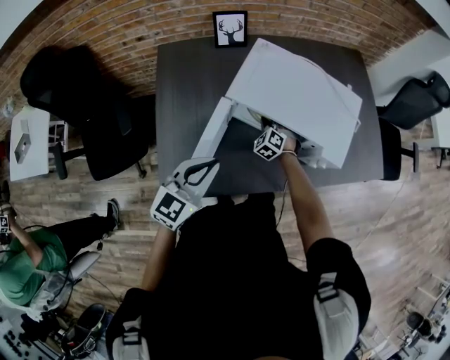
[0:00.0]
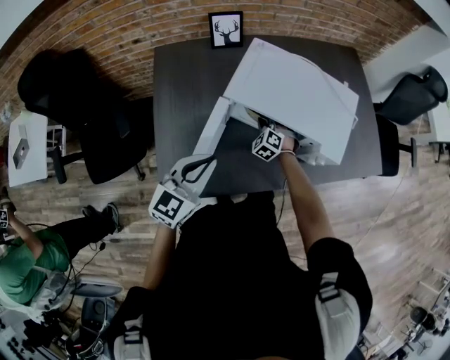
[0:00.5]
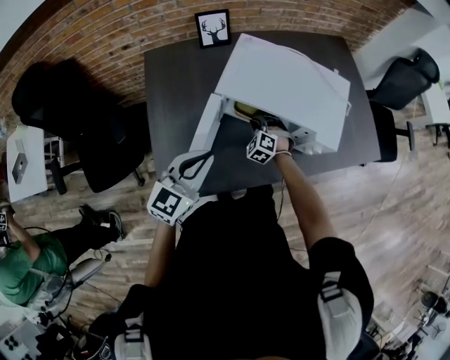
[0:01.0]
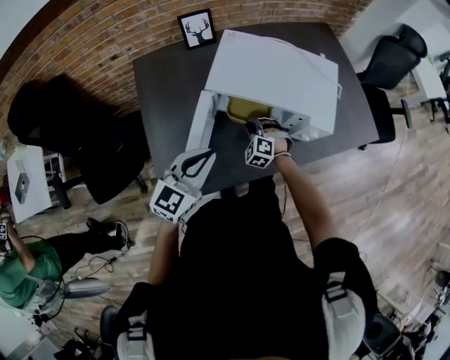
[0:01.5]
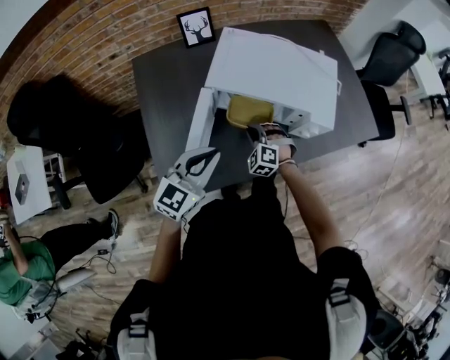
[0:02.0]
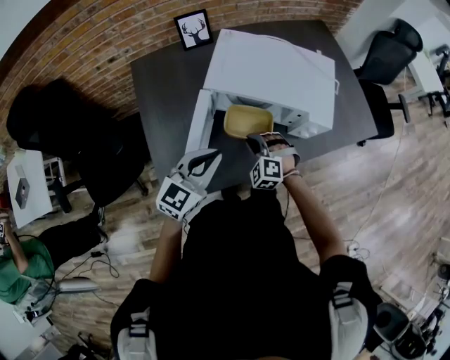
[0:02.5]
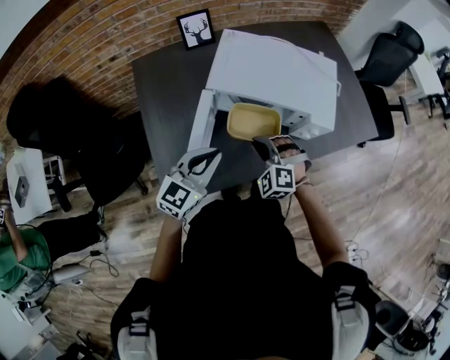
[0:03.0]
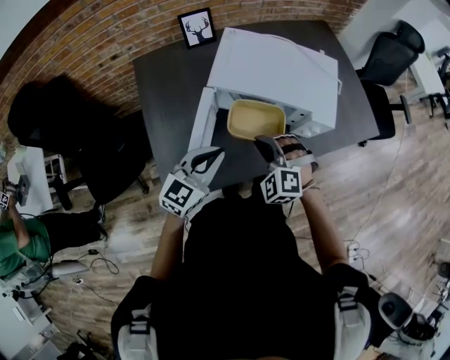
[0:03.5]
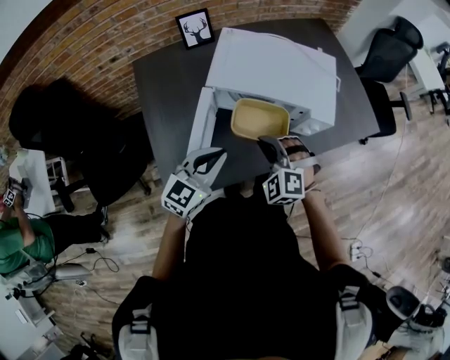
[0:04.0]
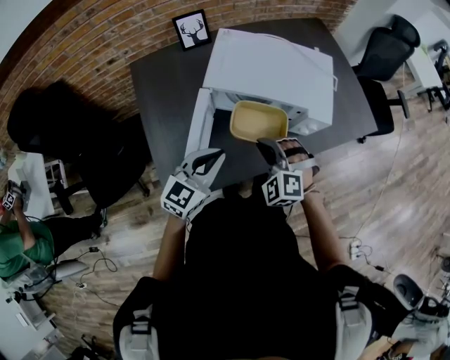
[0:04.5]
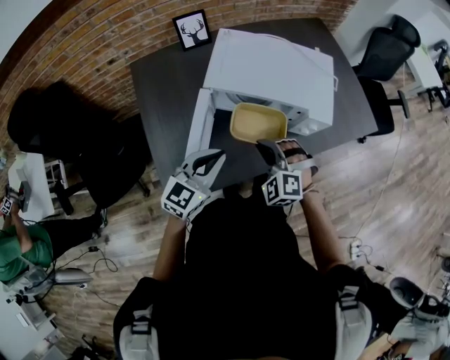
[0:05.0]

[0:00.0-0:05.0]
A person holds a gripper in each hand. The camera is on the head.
0:00.0 to 0:02.5: The right gripper moves backward and upward, approximately 20 cm.
0:02.5 to 0:05.0: The right gripper shifts roughly 10 cm upward.

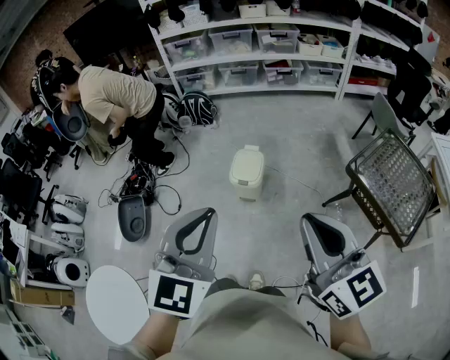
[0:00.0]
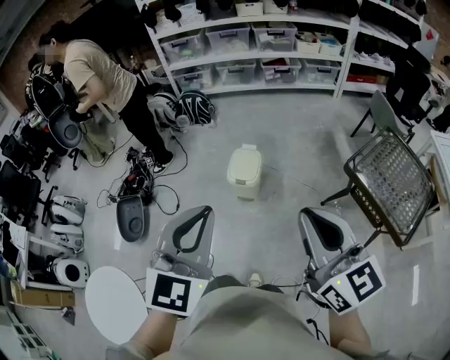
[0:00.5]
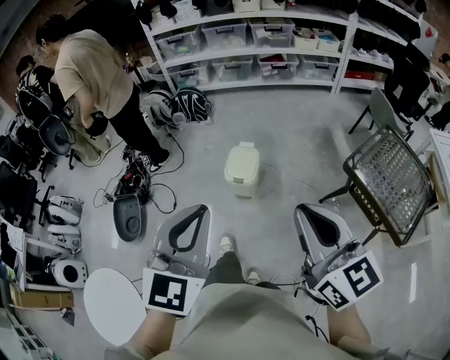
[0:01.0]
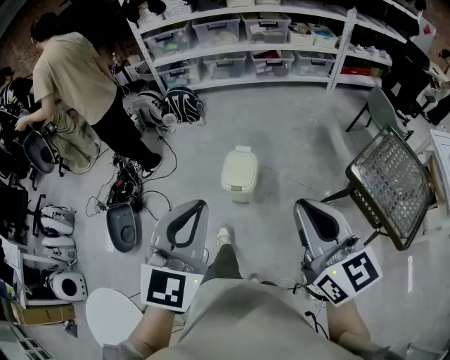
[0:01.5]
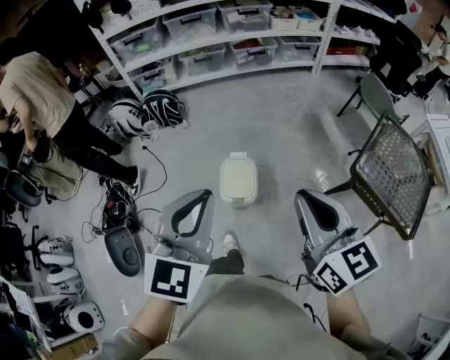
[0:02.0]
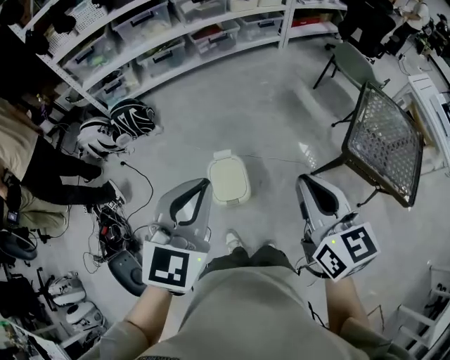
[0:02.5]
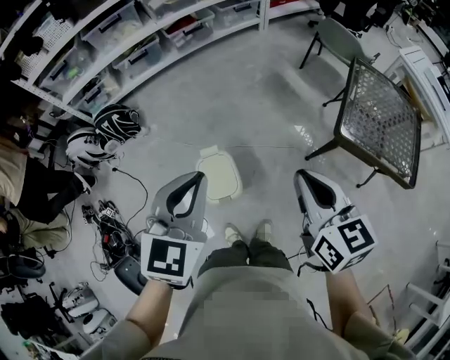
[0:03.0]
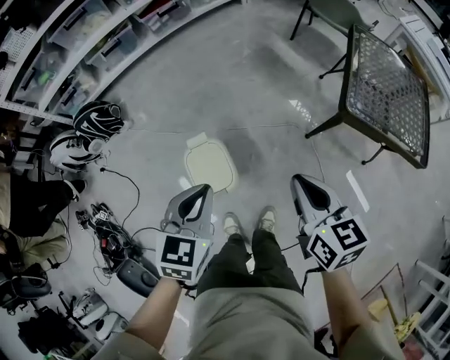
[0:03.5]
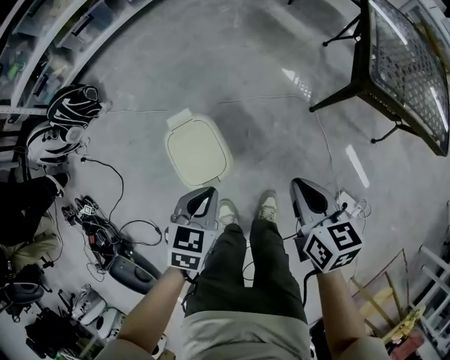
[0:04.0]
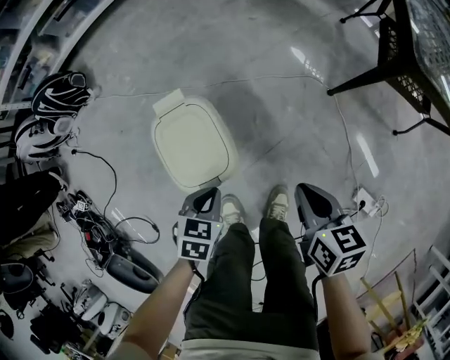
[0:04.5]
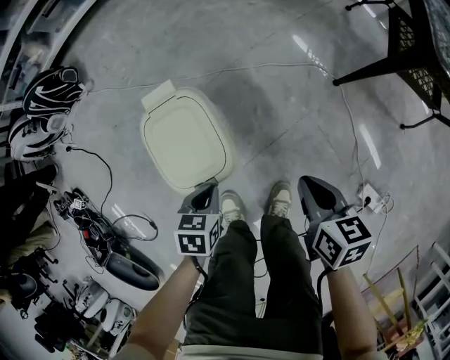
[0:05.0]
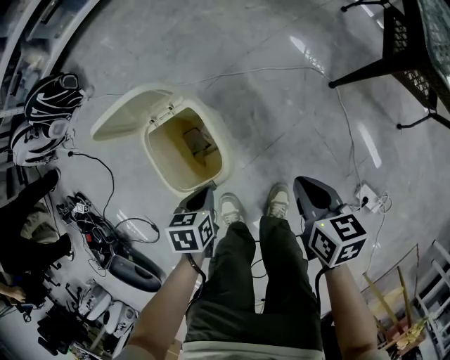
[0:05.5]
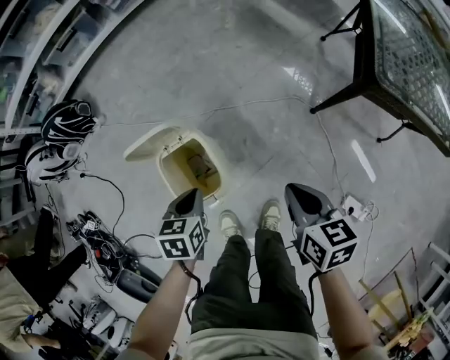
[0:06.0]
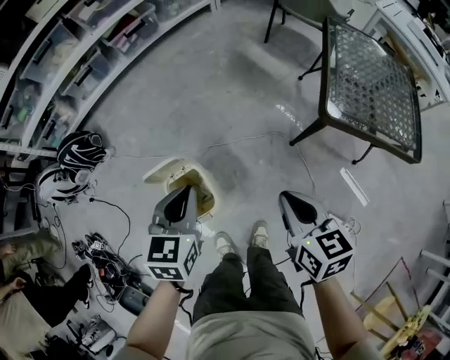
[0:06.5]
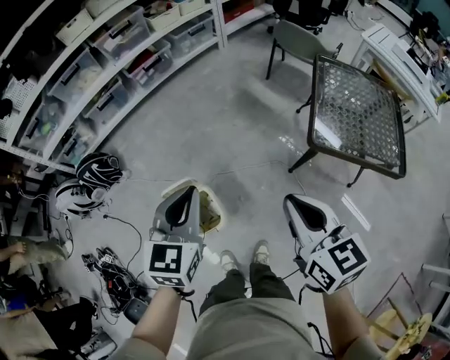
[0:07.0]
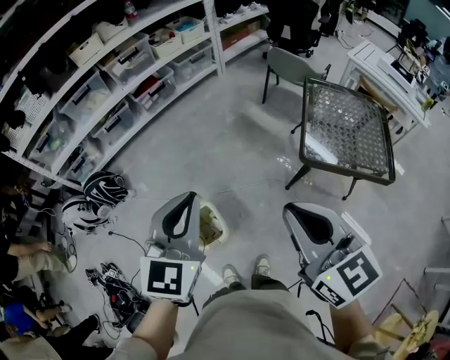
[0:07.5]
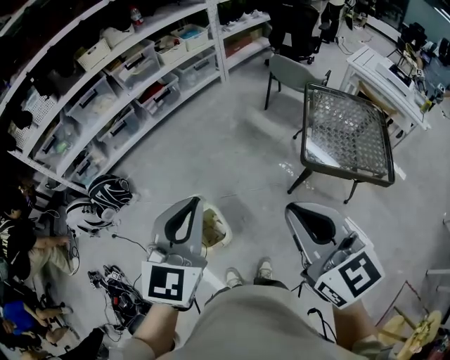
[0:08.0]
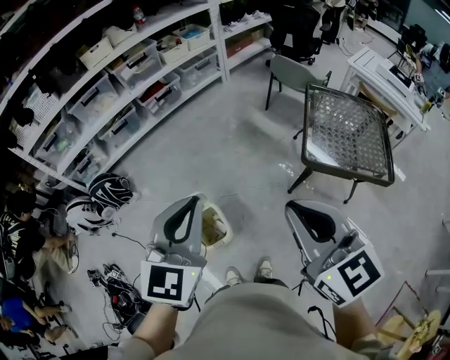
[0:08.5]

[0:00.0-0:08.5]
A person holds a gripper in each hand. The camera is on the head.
0:00.0 to 0:02.0: Both grippers move forward, approximately 30 cm.
0:02.0 to 0:04.0: Both grippers travel together downward, about 50 cm. The right gripper swivels roughly 40 degrees; the left gripper points its fingers roughly 30 degrees further downward.
0:04.0 to 0:06.5: The left gripper goes about 25 cm upward and forward. Meanwhile the right gripper travels upward and forward by roughly 15 cm.
0:06.5 to 0:08.5: Both grippers travel together upward, roughly 35 cm. The left gripper changes its angle by approximately 30 degrees, while the right gripper changes its angle by some 30 degrees.

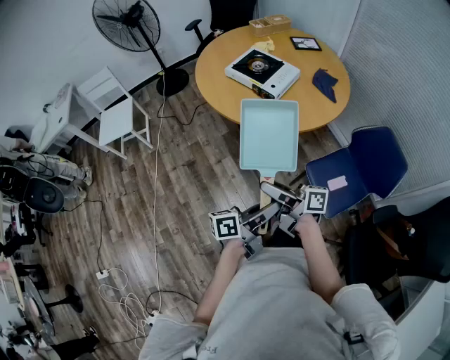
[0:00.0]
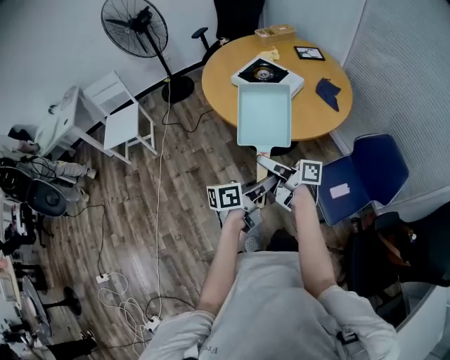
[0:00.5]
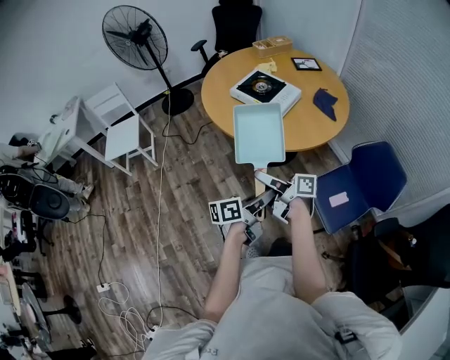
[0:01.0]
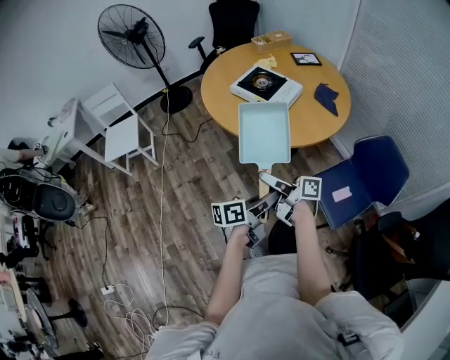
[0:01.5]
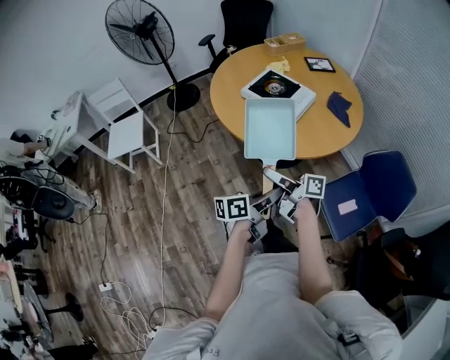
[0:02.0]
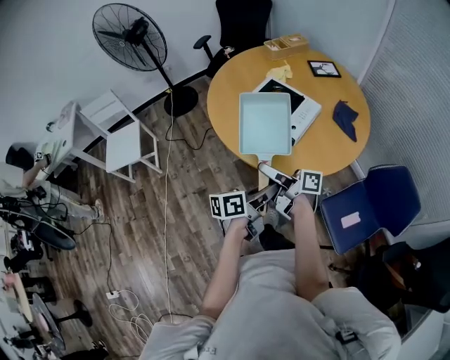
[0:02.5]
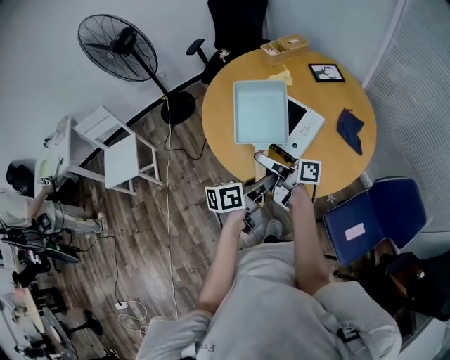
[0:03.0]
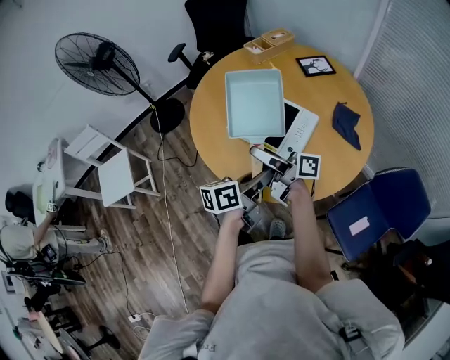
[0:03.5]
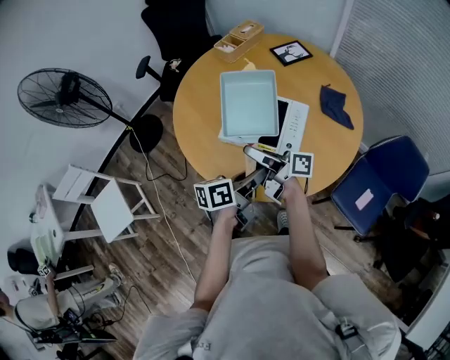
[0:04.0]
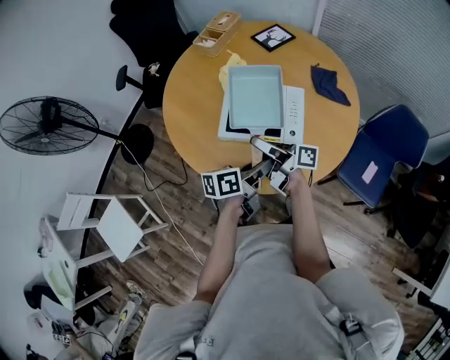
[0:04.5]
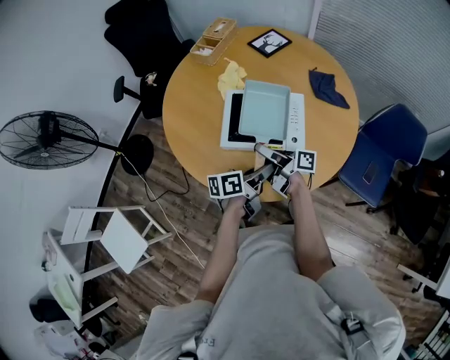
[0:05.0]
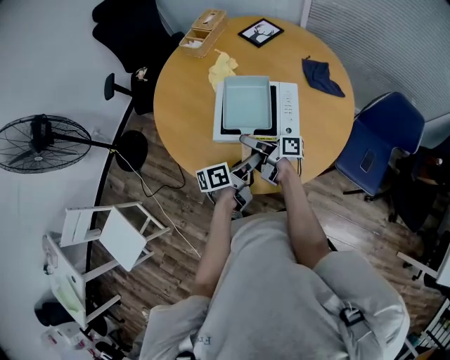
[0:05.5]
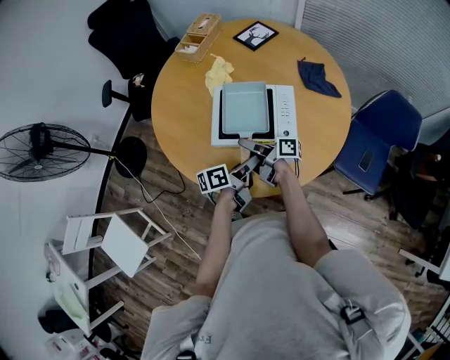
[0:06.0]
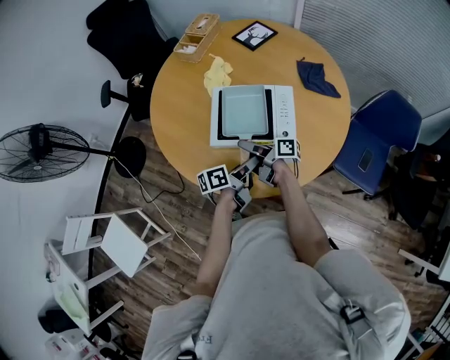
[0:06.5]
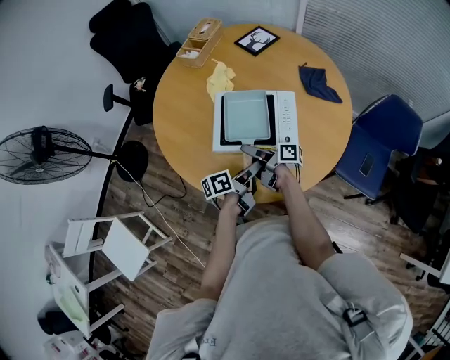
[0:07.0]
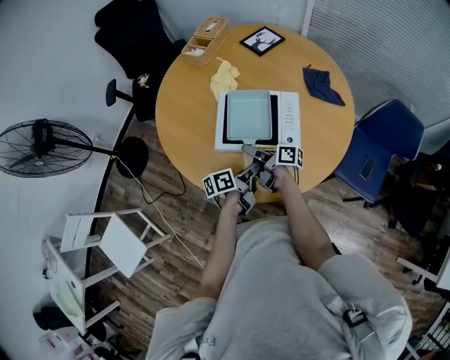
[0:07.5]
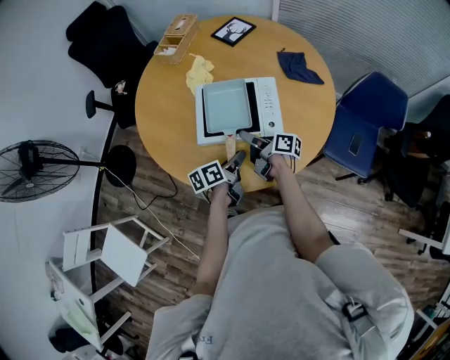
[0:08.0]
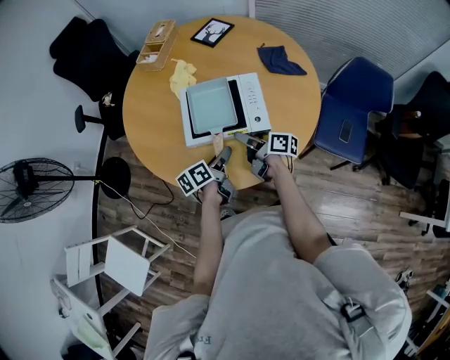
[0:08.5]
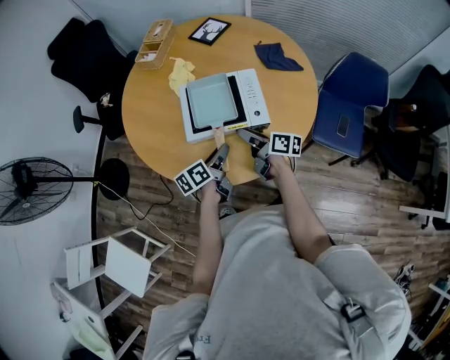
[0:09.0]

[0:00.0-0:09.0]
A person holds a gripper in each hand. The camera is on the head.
0:00.0 to 0:02.0: Both grippers travel together forward, some 15 cm.
0:02.0 to 0:04.5: The left gripper ends up roughly 35 cm from where it was, and swivels roughly 30 degrees; the right gripper ends up about 35 cm from where it was, and rotates some 30 degrees.
0:04.5 to 0:07.0: Both grippers move downward, about 10 cm.
0:07.0 to 0:09.0: The right gripper is displaced to the right by some 10 cm, and changes its angle by some 30 degrees.

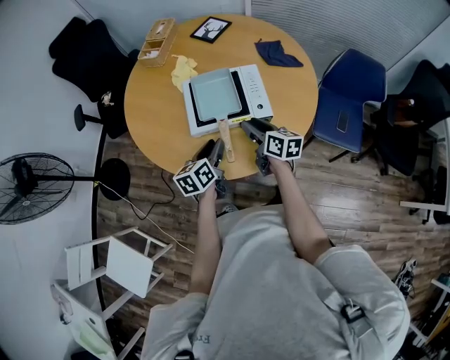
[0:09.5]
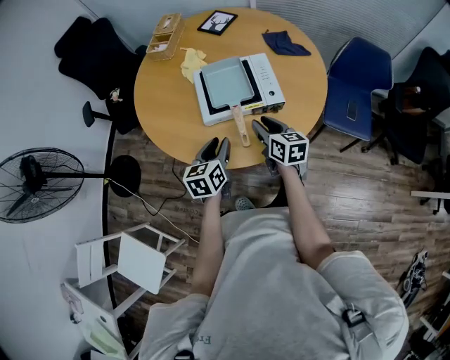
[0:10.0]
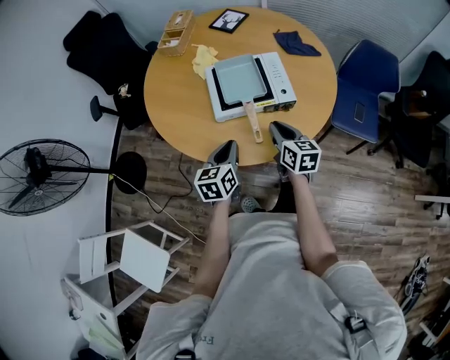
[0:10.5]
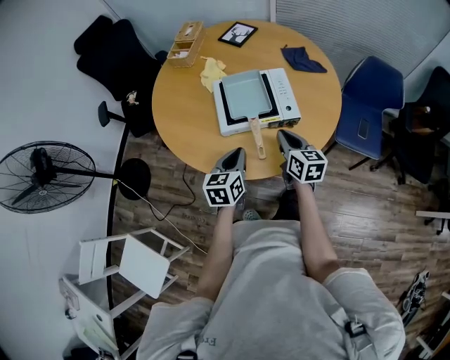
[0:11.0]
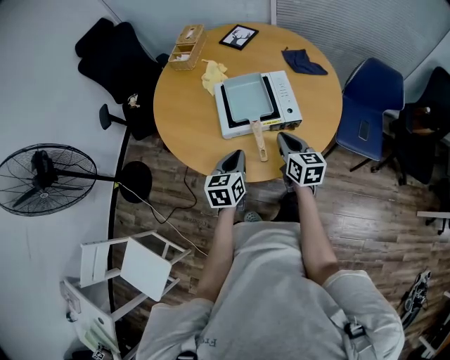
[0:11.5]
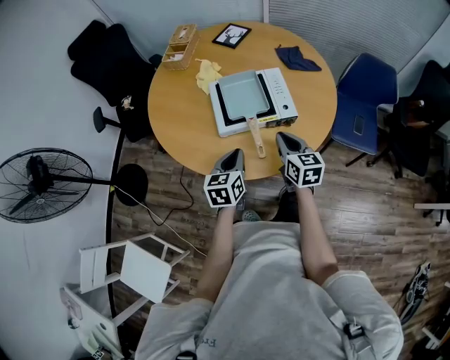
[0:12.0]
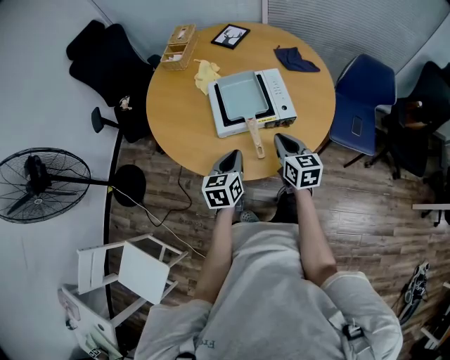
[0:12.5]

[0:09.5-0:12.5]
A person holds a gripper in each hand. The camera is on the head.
0:09.5 to 0:11.0: The left gripper moves some 5 cm, and closes its fingers; the right gripper shifts by approximately 5 cm, and closes.
0:11.0 to 0:12.5: The grippers make only small movements.

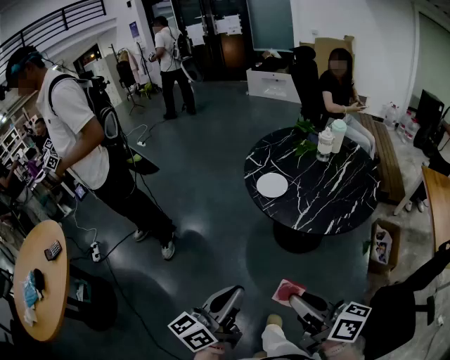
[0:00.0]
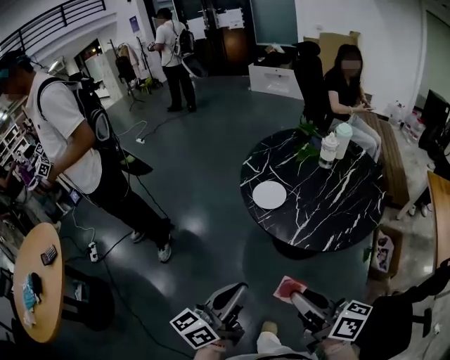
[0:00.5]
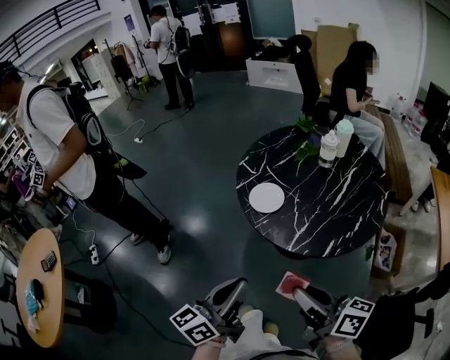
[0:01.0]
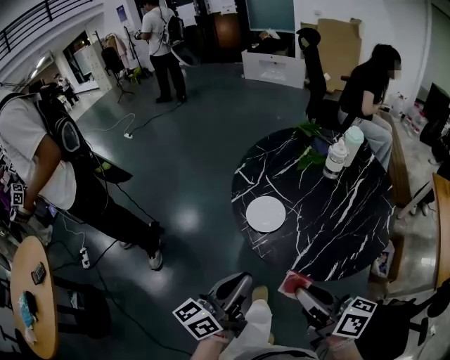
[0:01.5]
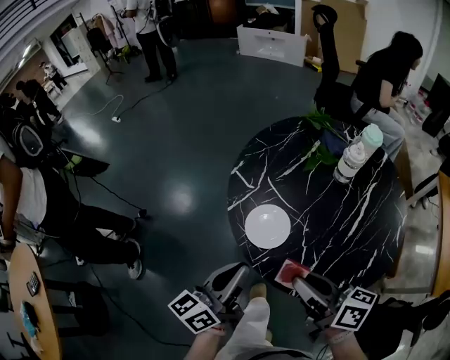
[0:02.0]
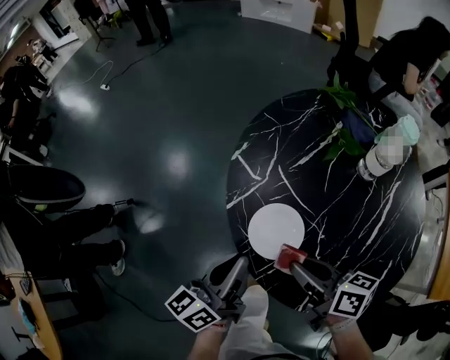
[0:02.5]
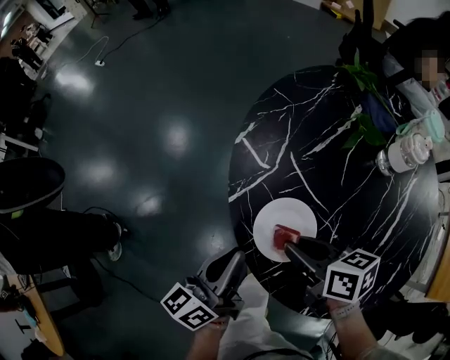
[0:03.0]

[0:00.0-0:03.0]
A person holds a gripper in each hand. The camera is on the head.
0:00.0 to 0:01.5: The two grippers go roughly 25 cm forward.
0:01.5 to 0:03.0: The two grippers go approximately 30 cm forward and downward. The right gripper tips its fingers downward by roughly 30 degrees.
